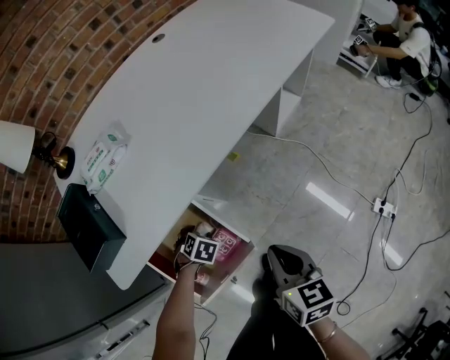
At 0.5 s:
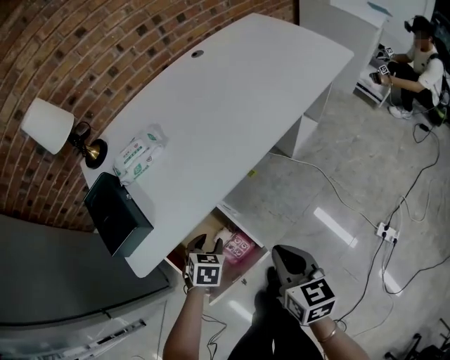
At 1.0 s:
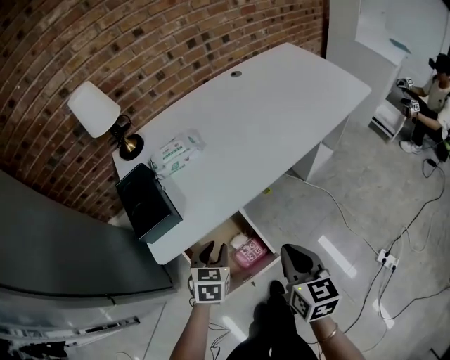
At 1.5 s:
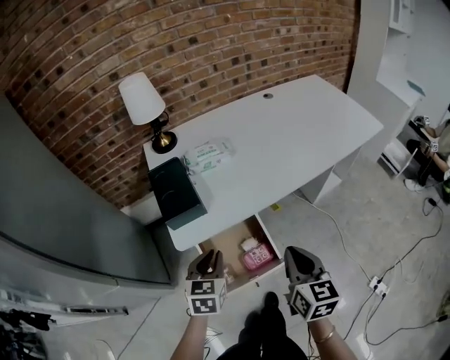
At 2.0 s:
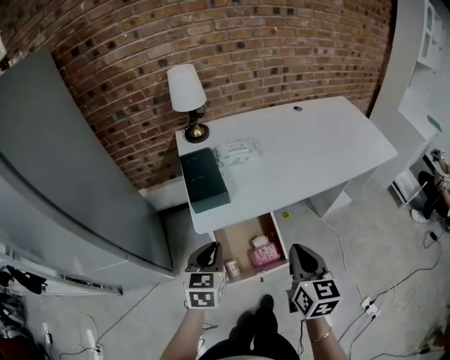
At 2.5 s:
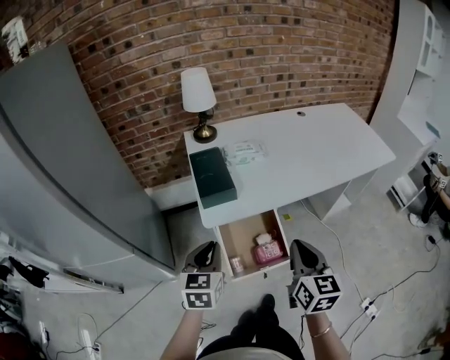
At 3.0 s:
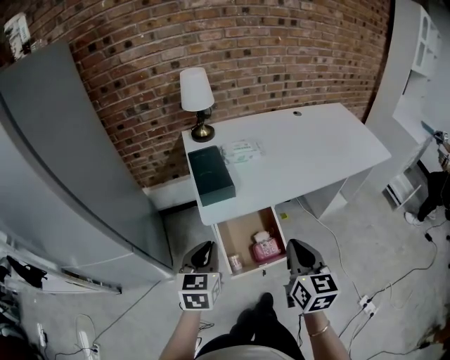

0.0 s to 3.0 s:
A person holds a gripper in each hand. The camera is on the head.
0.0 to 1.5 s: The left gripper moves upward, roughly 35 cm, tilts its fingers approximately 40 degrees upward, and closes its fingers; the right gripper shifts about 20 cm upward, and turns by approximately 20 degrees.
1.5 to 3.0 s: The right gripper is displaced to the left, backward and upward by about 15 cm, while the left gripper shifts roughly 20 cm backward, to the left and upward.

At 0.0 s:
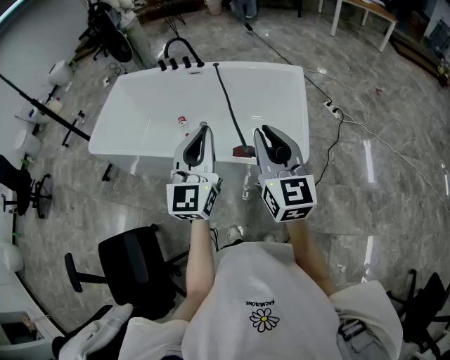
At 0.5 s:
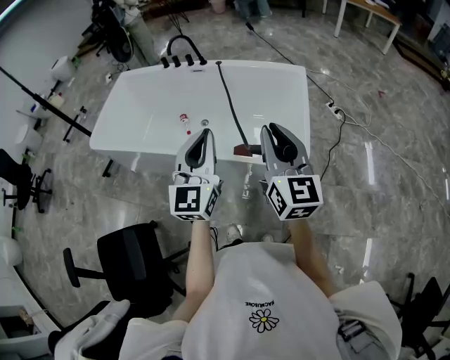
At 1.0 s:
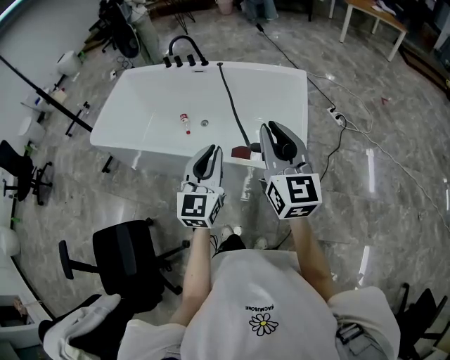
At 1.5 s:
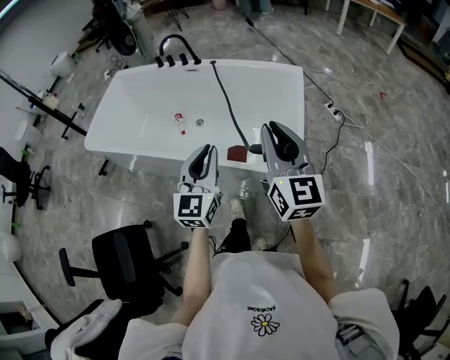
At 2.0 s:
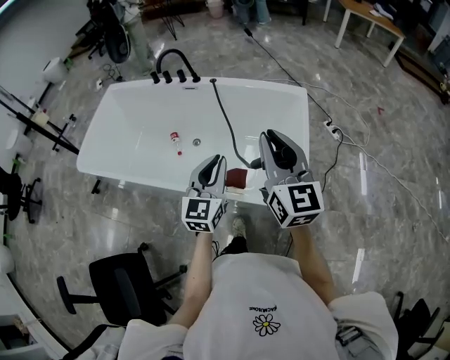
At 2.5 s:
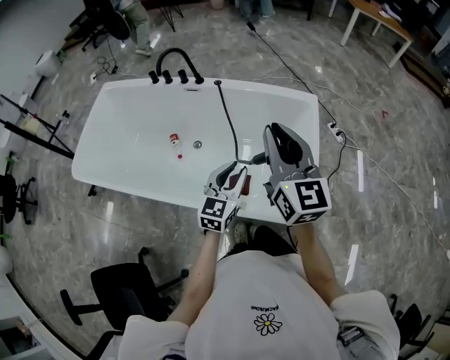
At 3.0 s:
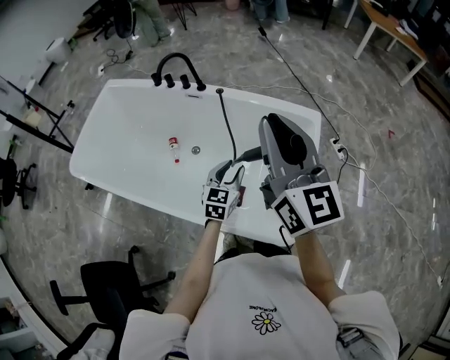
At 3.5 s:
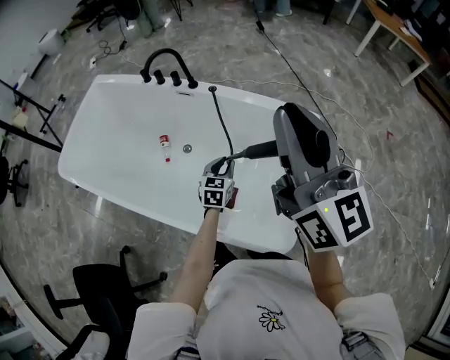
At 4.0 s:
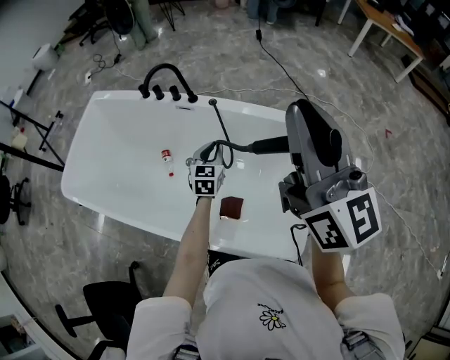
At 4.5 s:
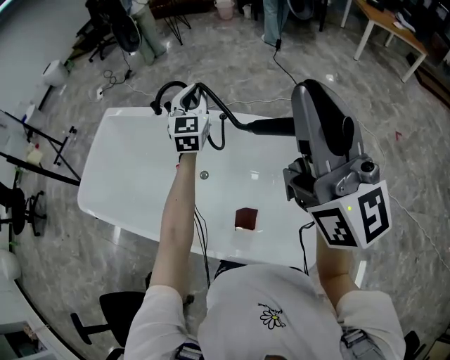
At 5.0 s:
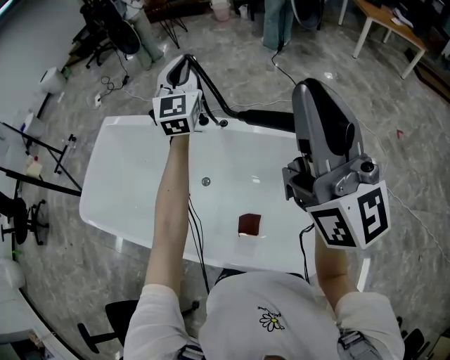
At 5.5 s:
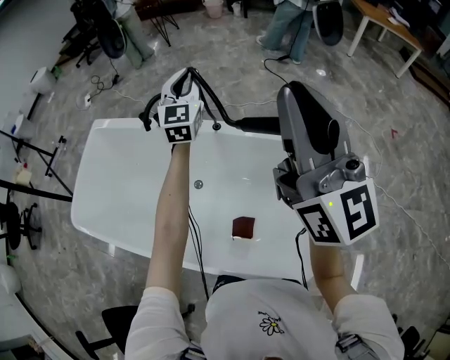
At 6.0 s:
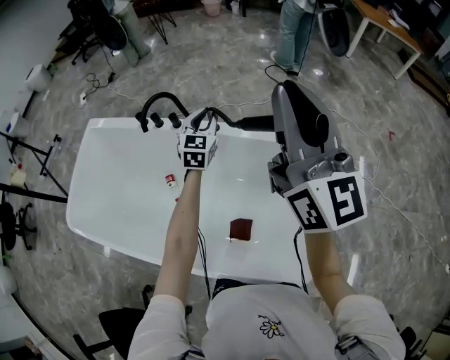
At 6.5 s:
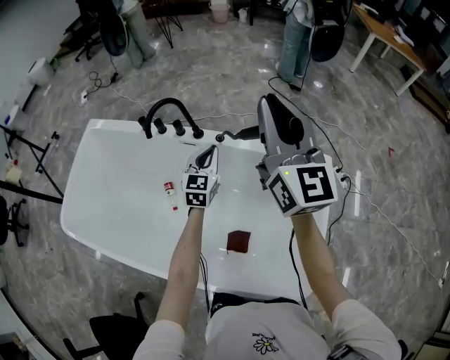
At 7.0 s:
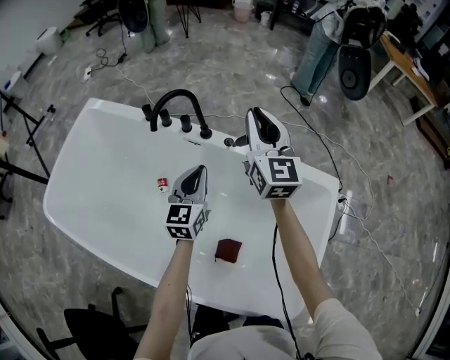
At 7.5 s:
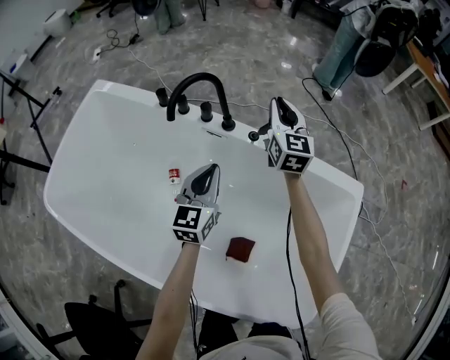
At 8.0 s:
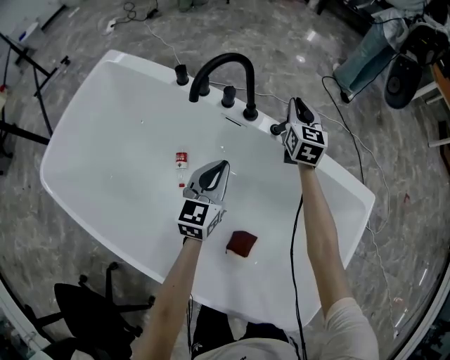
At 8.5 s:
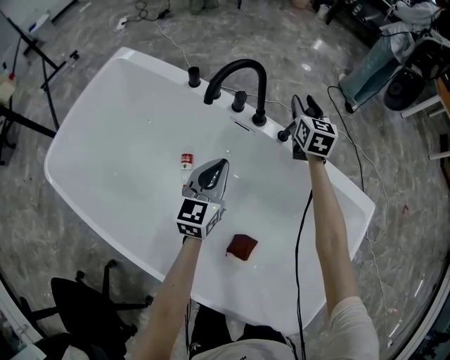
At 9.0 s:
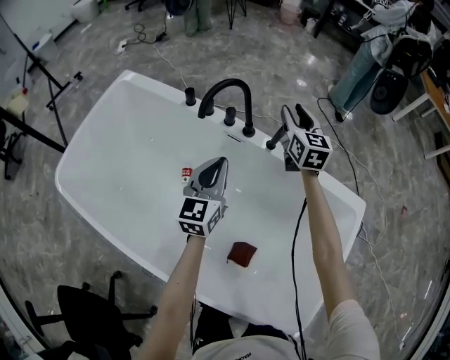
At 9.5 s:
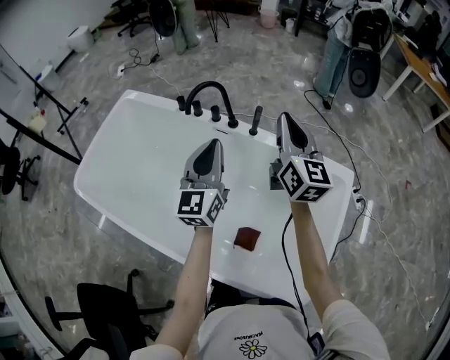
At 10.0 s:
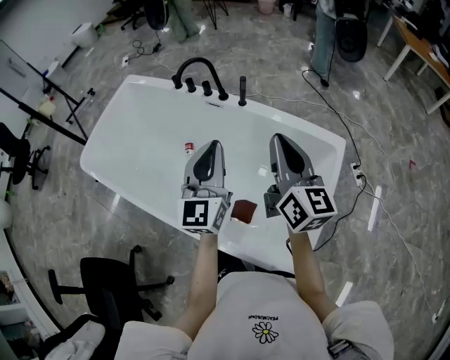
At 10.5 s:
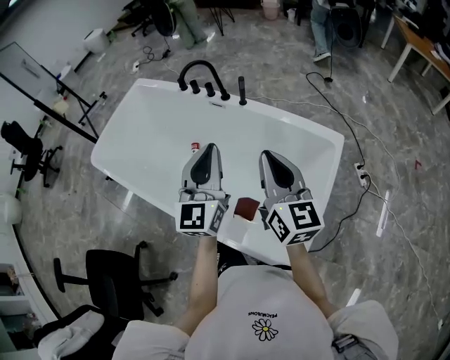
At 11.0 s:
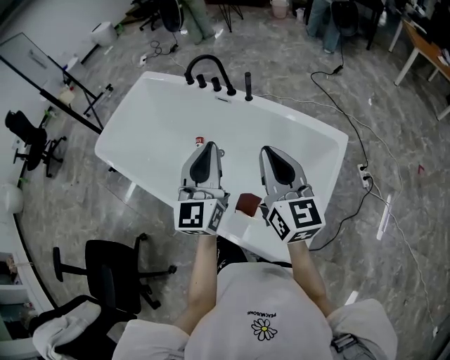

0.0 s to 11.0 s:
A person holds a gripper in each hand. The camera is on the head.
0.0 to 2.0 s: The left gripper travels forward and downward by approximately 20 cm; the right gripper goes roughly 15 cm forward.
2.0 to 3.5 s: The left gripper heads forward and downward, covering about 35 cm, and turns by about 30 degrees, while the right gripper moves forward and upward, about 25 cm.
3.5 to 5.5 s: The left gripper heads upward and forward, covering approximately 50 cm, and tips its fingers upward by approximately 30 degrees. Meanwhile the right gripper travels forward and upward by some 15 cm.
5.5 to 7.5 s: The right gripper heads downward, forward and to the left, covering some 50 cm, and changes its angle by some 30 degrees, while the left gripper travels downward and to the left by approximately 30 cm, and turns by about 30 degrees.
7.5 to 9.0 s: The left gripper shifts some 5 cm upward. The right gripper travels downward and back again, about 10 cm each way, and opens.
9.0 to 11.0 s: The left gripper heads backward, upward and to the right, covering approximately 40 cm, and swivels approximately 20 degrees; the right gripper shifts roughly 50 cm backward, swivels some 20 degrees, and closes its fingers.

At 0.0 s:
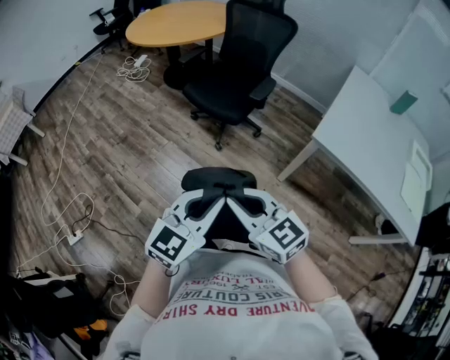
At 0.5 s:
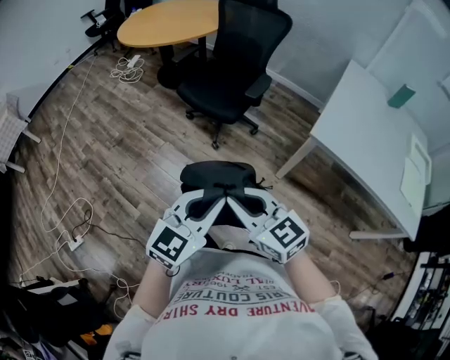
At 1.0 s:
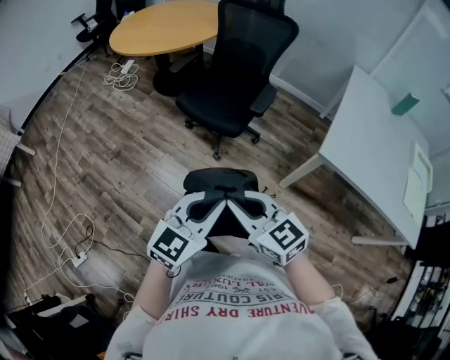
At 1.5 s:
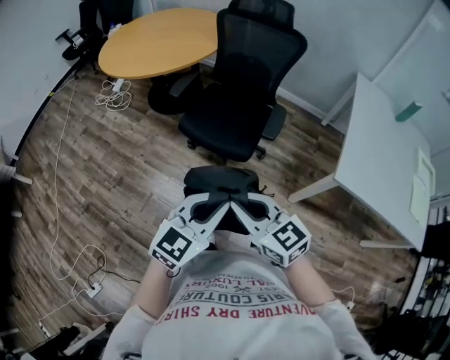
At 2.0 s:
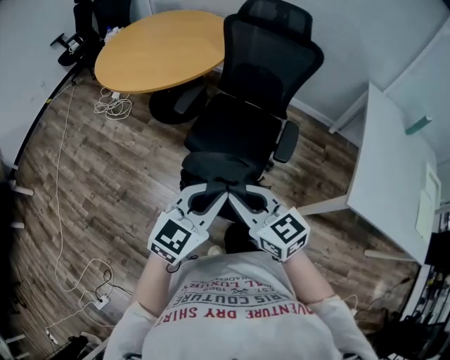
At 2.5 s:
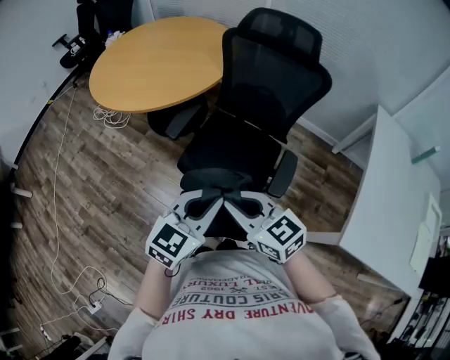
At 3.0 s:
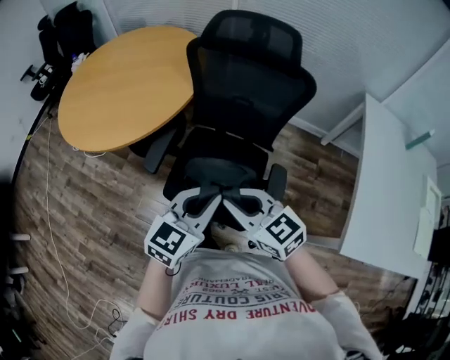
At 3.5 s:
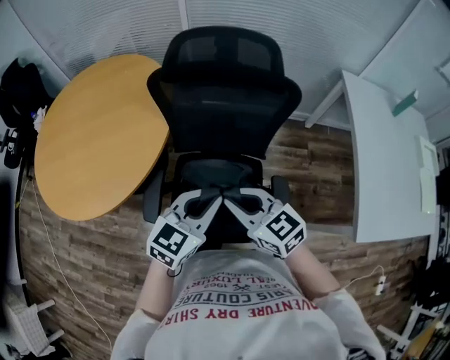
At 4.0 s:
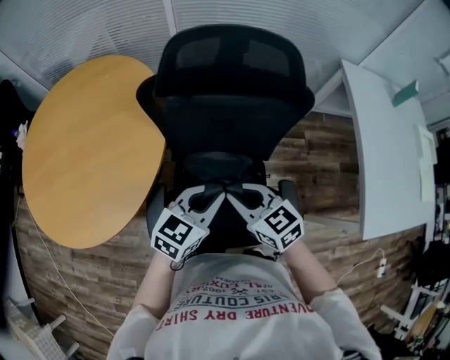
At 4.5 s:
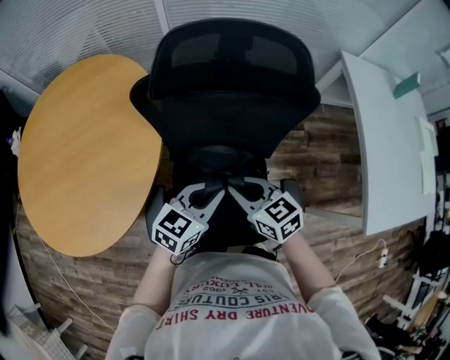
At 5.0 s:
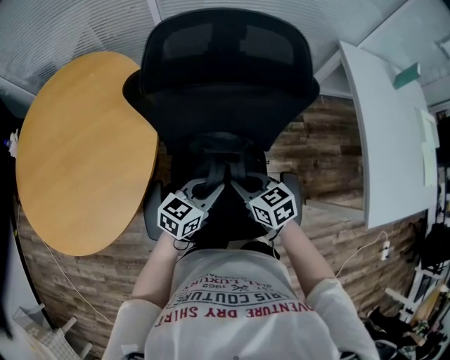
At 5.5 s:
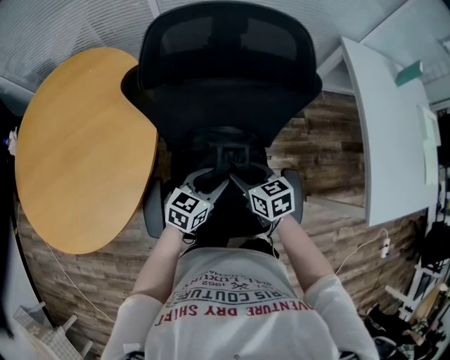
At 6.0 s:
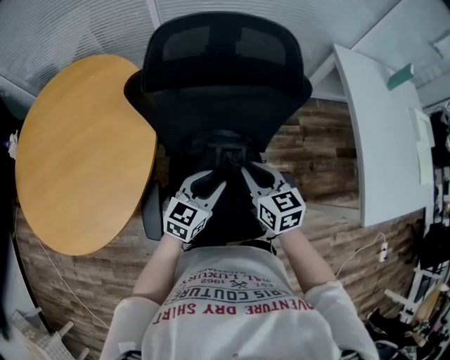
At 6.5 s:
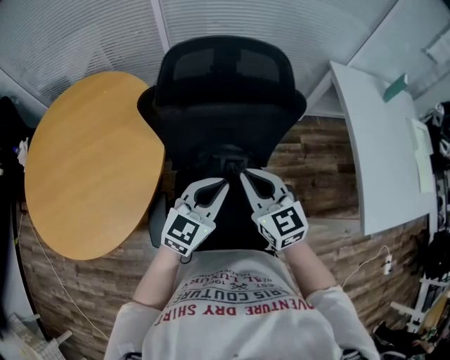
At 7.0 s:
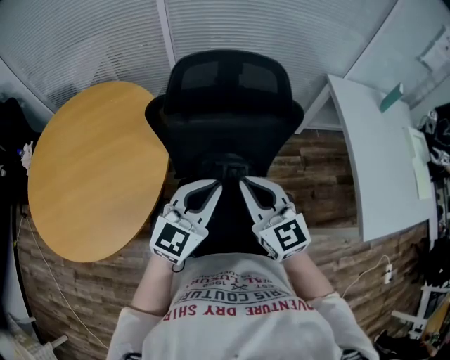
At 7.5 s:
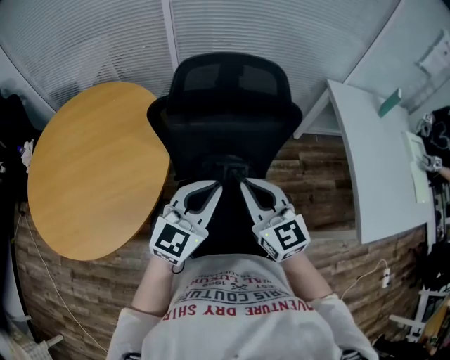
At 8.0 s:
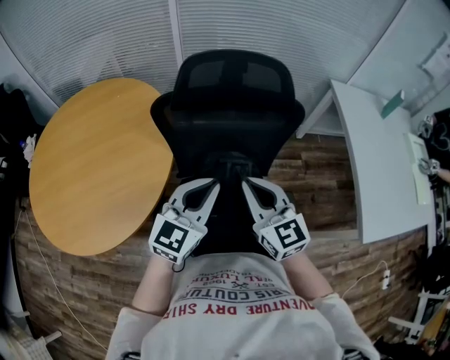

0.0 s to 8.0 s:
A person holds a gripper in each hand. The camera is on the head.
0.0 to 2.0 s: Both grippers are carried forward, about 40 cm.
2.0 to 4.0 s: The two grippers travel together, roughly 50 cm. The left gripper changes its angle by approximately 30 degrees; the right gripper swivels about 30 degrees.
4.0 to 6.0 s: The right gripper moves to the right and forward, approximately 10 cm, reaches approximately 15 cm downward, then returns, turns by approximately 20 degrees, and opens and closes again, while the left gripper is displaced downward by some 10 cm, and opens its fingers.
6.0 to 8.0 s: The two grippers go roughly 15 cm upward. The left gripper turns by about 20 degrees, and closes up, while the right gripper changes its angle by about 30 degrees.

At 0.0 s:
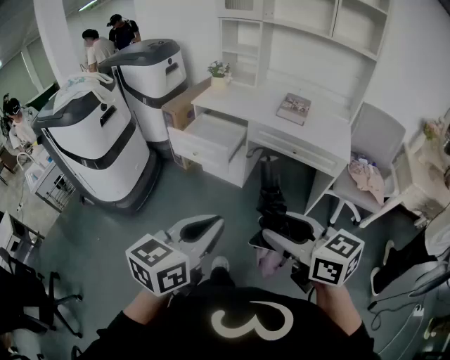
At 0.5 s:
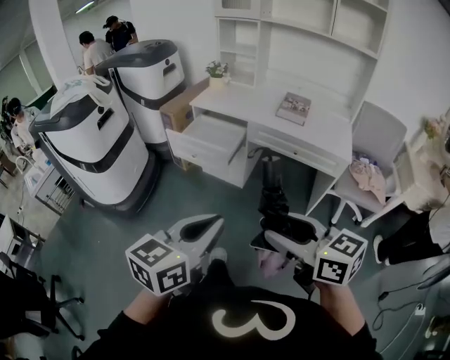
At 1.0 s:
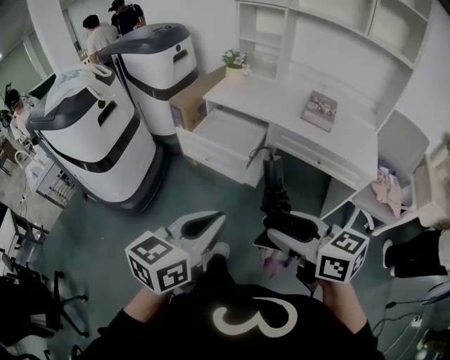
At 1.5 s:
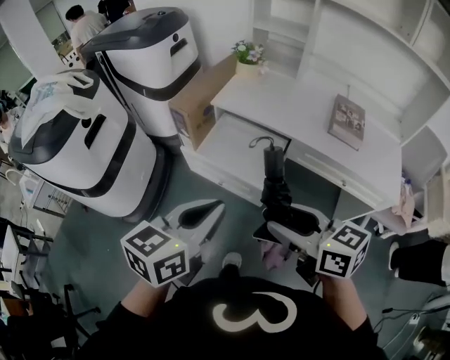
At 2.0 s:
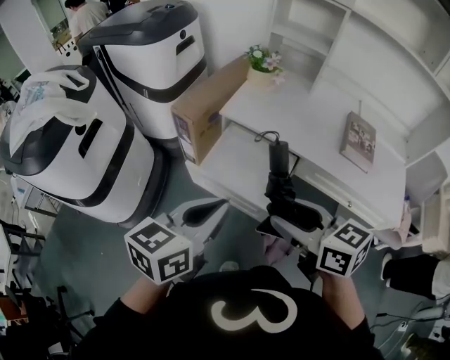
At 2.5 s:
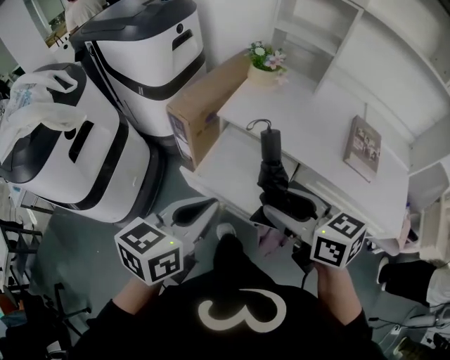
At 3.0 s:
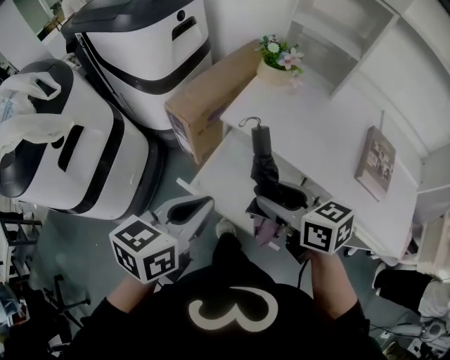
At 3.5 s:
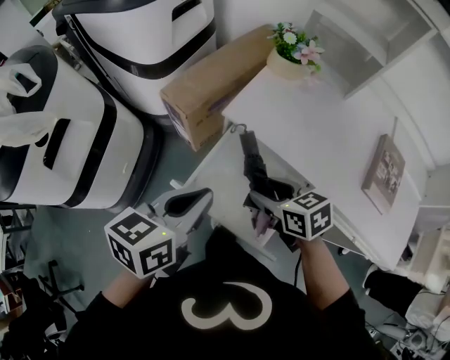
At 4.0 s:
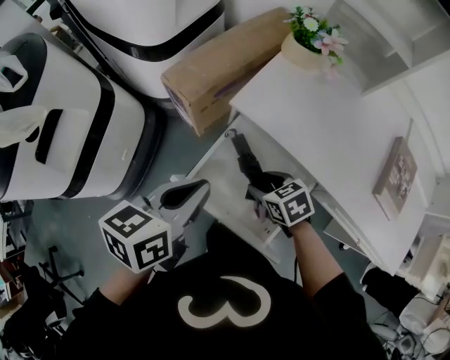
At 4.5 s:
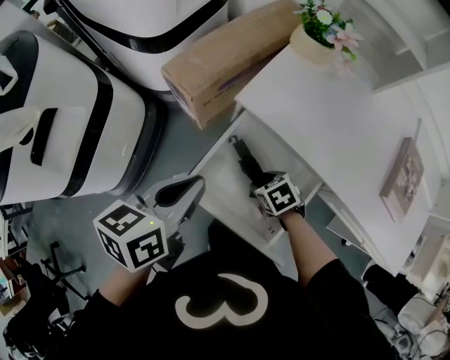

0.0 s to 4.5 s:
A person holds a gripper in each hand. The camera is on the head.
0.0 to 2.0 s: The two grippers travel together, forward, approximately 50 cm.
2.0 to 4.5 s: The left gripper travels forward and downward by some 30 cm, and turns by roughly 20 degrees; the right gripper shifts approximately 50 cm downward and forward, and angles its fingers downward, by about 50 degrees.
